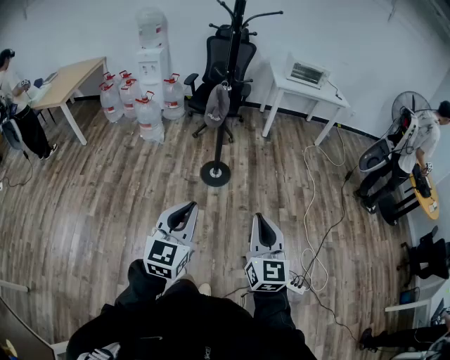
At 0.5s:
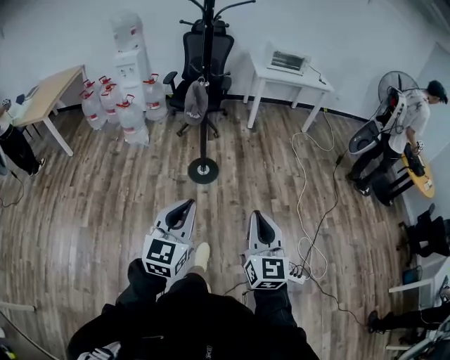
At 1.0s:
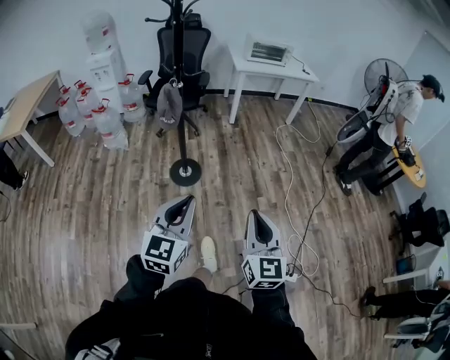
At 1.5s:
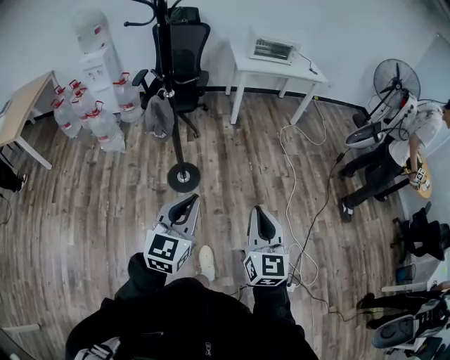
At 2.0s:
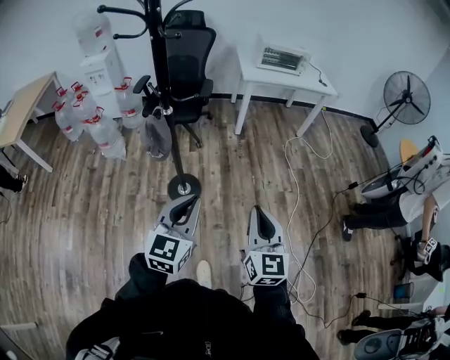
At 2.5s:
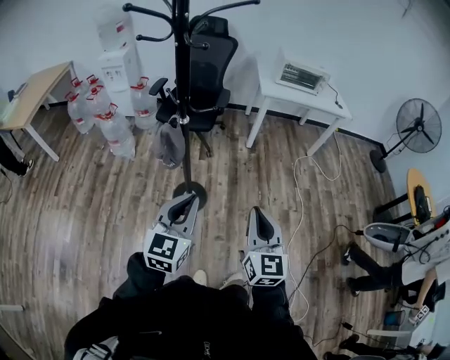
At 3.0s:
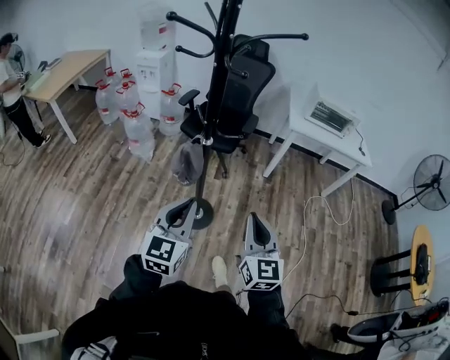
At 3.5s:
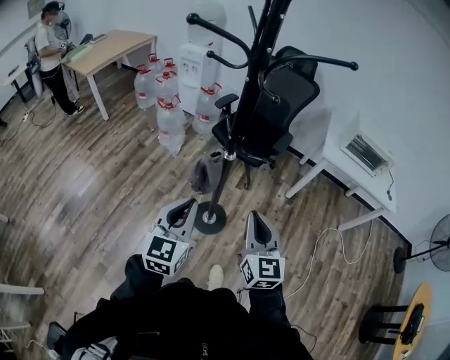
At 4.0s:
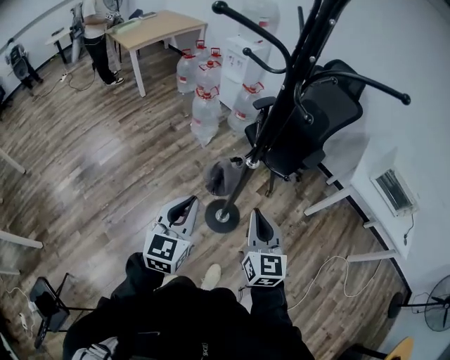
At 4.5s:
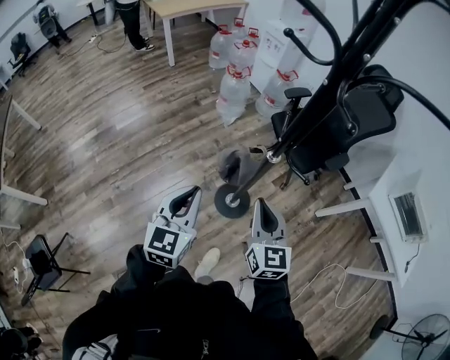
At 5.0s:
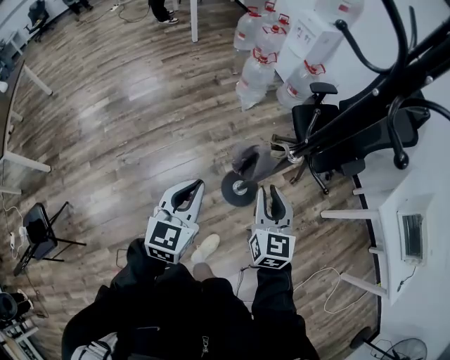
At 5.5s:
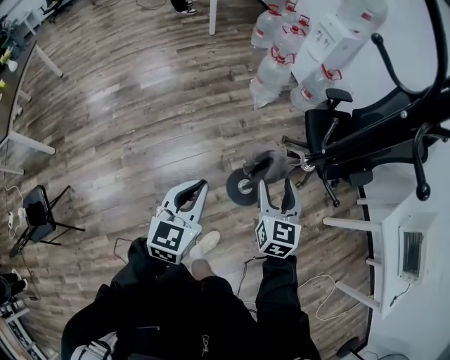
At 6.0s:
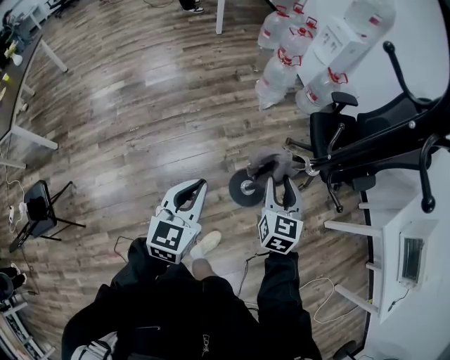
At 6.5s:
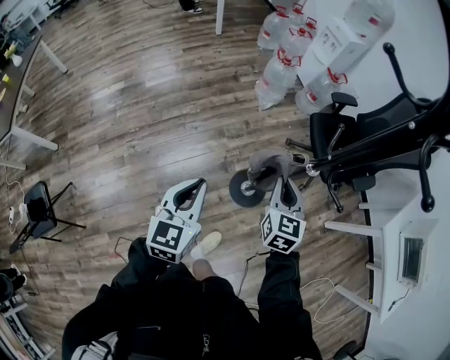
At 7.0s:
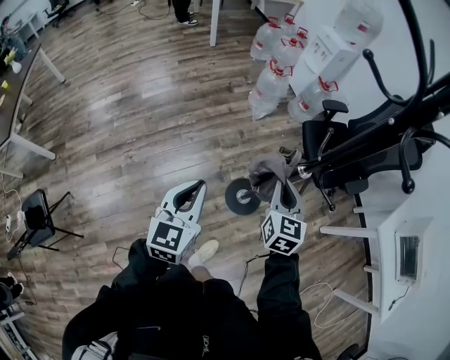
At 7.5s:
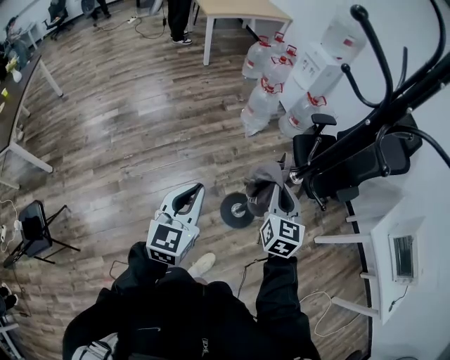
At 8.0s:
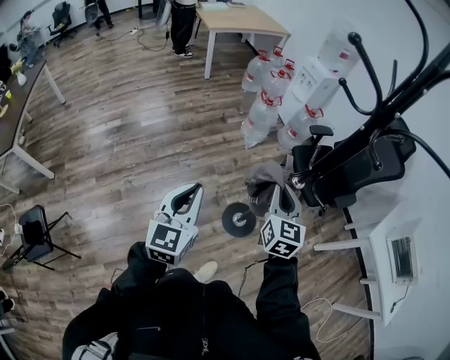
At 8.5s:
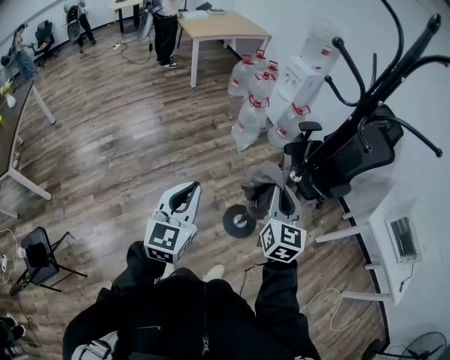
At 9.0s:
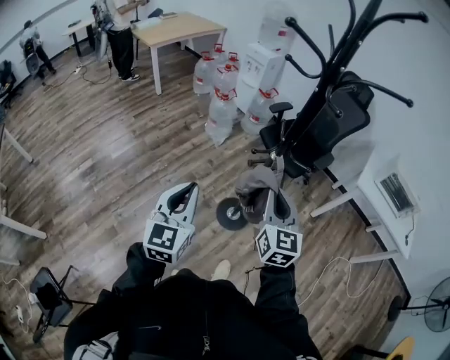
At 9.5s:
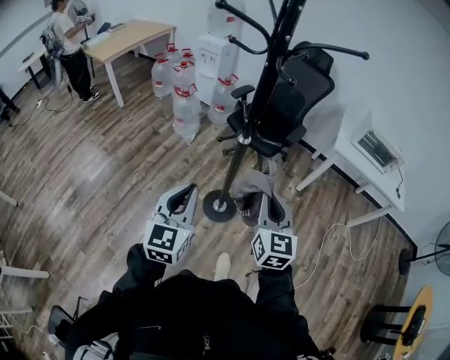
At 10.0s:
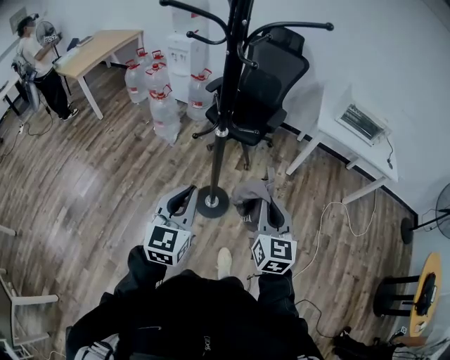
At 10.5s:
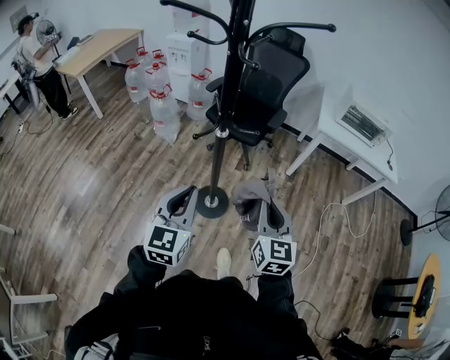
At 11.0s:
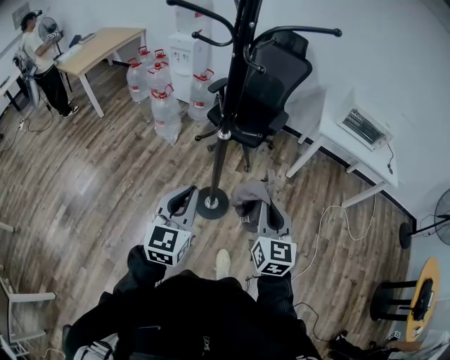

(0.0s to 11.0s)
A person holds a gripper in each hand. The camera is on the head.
0.0s - 2.0s: Both grippers are carried forward, about 50 cm.
2.0s - 3.5s: The left gripper shifts by approximately 25 cm, and swivels approximately 30 degrees, while the right gripper moves roughly 30 cm, and turns by approximately 30 degrees.
3.5s - 5.5s: The right gripper shifts by approximately 30 cm, turns by about 30 degrees, and opens its fingers; the left gripper heads downward, covering about 15 cm, and changes its angle by some 40 degrees.
5.5s - 7.5s: The two grippers go some 10 cm upward. The right gripper closes up.
7.5s - 9.0s: The right gripper moves backward and upward, about 20 cm. The left gripper moves upward and backward, approximately 10 cm.
9.0s - 11.0s: The right gripper travels to the right and backward by about 15 cm, and turns by about 20 degrees; the left gripper travels to the right by approximately 10 cm, and swivels about 20 degrees.

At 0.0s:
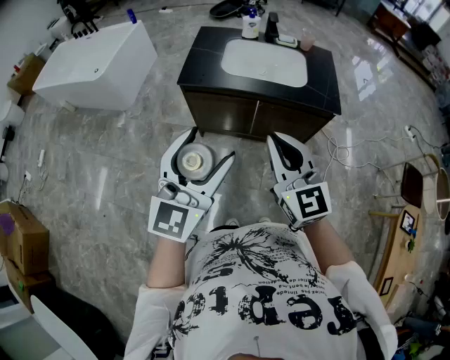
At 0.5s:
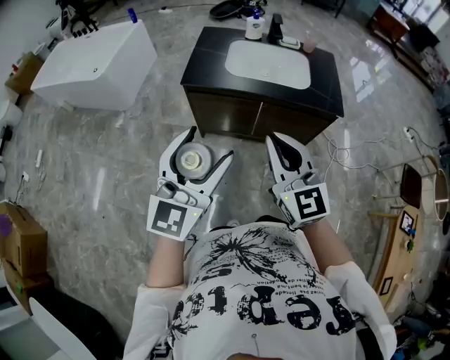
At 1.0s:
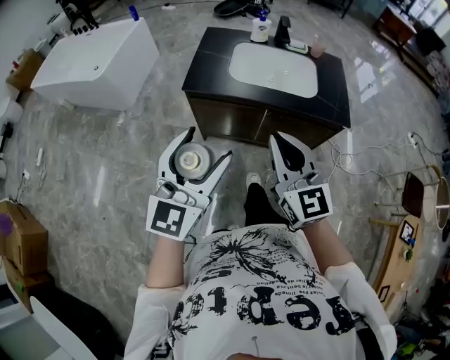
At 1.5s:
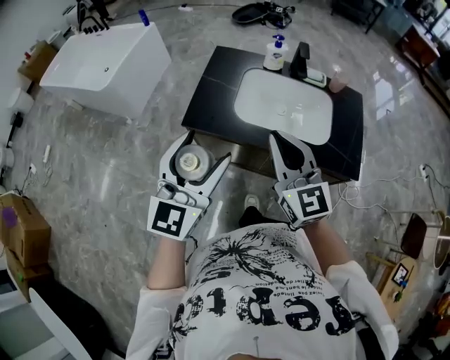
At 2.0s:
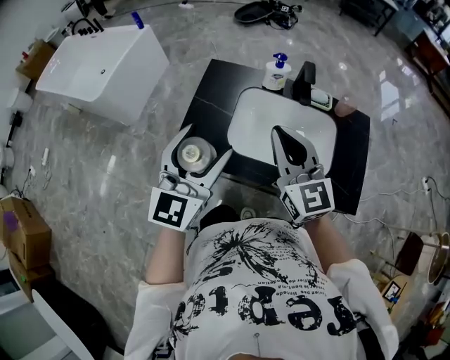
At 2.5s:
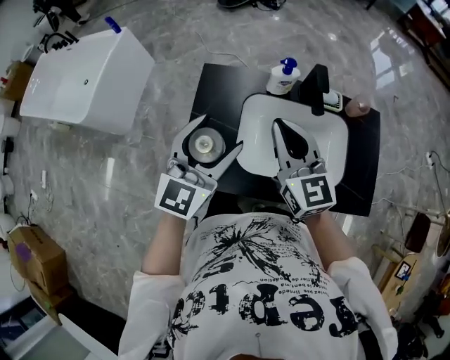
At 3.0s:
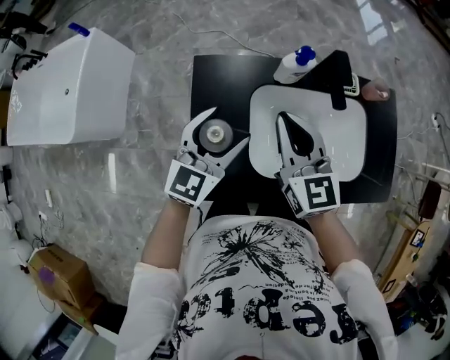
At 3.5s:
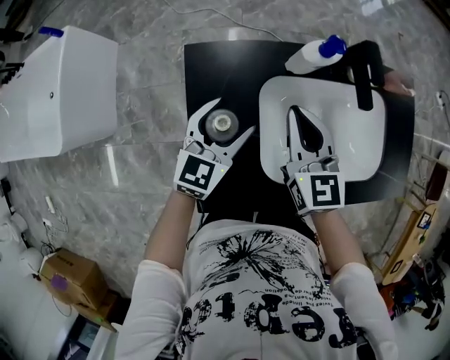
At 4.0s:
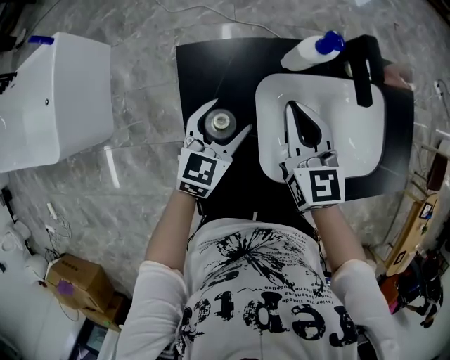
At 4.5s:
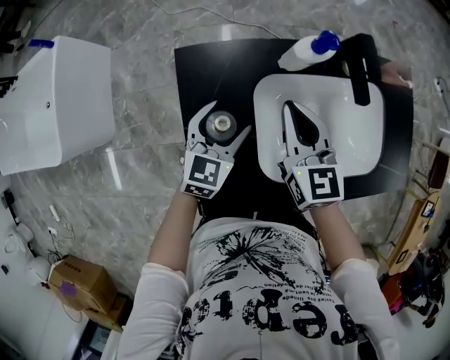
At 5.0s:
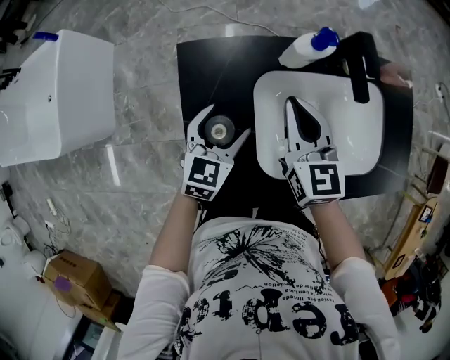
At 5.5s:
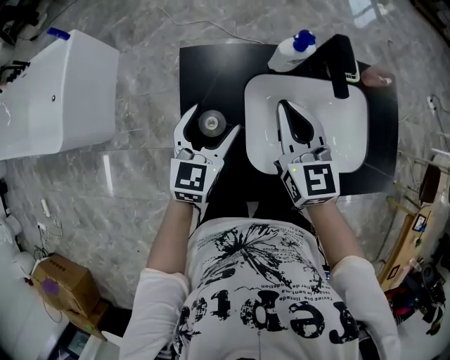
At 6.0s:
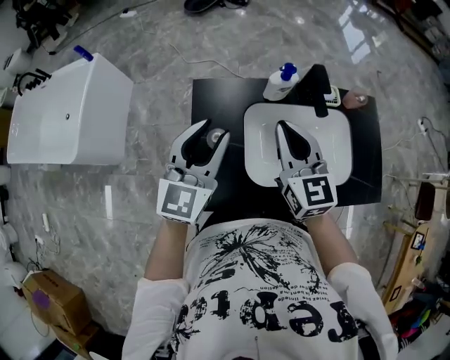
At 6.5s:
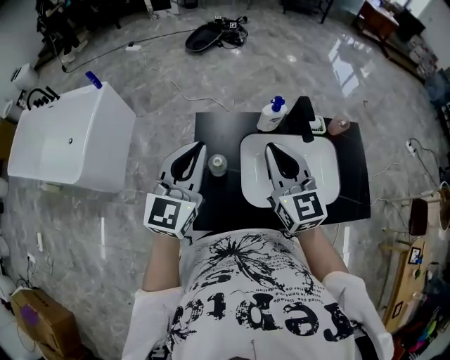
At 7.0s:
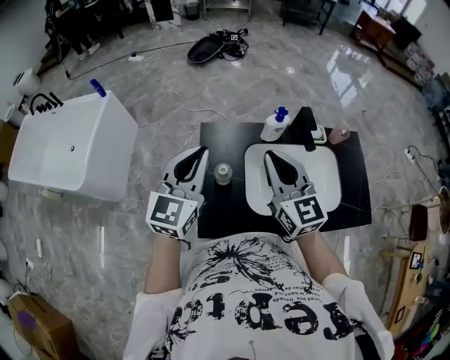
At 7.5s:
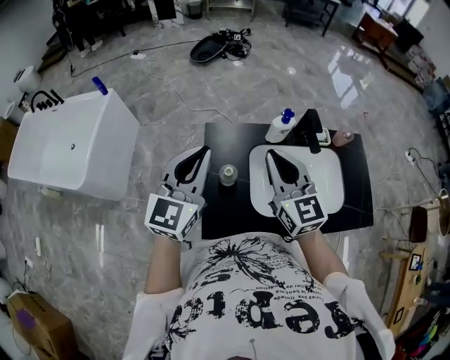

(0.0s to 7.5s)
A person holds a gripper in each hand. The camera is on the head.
0.0s - 2.0s: The pair of grippers is taken forward, some 50 cm.
2.0s - 4.0s: The right gripper moves about 35 cm, and turns by some 30 degrees, while the left gripper shifts roughly 35 cm downward, and rotates about 40 degrees.
4.0s - 5.5s: The grippers both shift upward by about 5 cm.
5.5s - 7.5s: The right gripper shifts some 20 cm upward, backward and to the left. Meanwhile the left gripper shifts roughly 25 cm upward, swivels approximately 20 degrees, and closes its fingers.

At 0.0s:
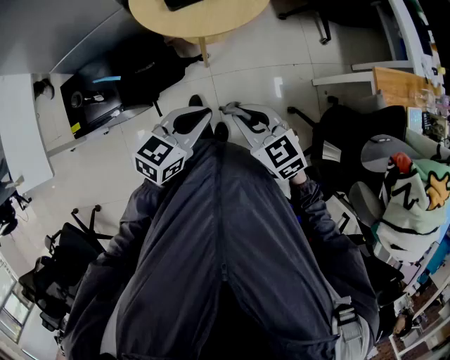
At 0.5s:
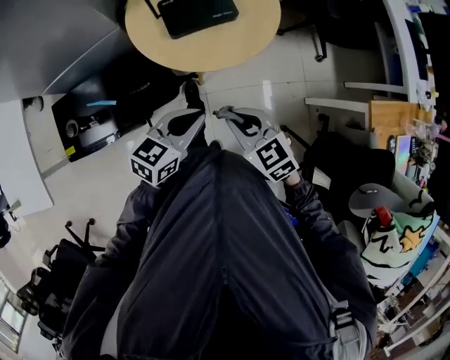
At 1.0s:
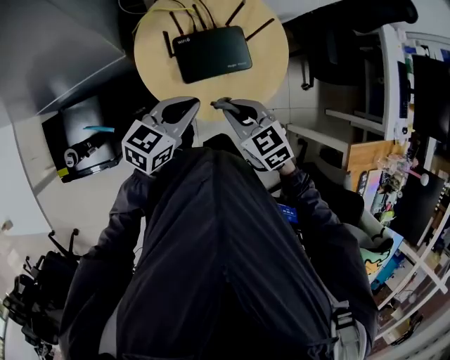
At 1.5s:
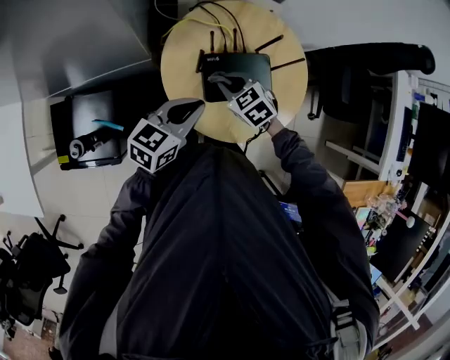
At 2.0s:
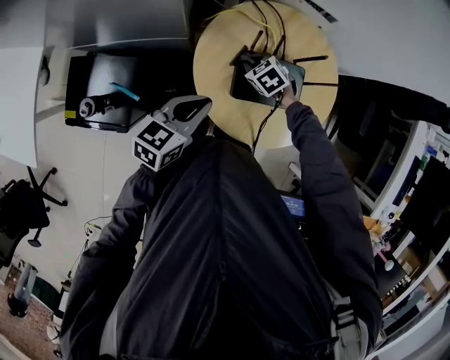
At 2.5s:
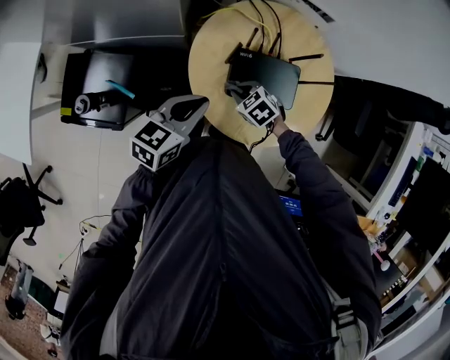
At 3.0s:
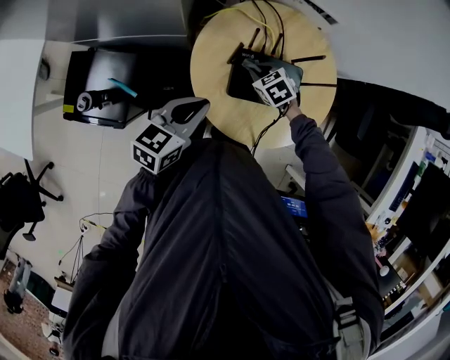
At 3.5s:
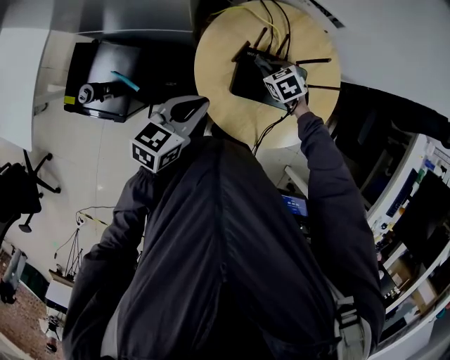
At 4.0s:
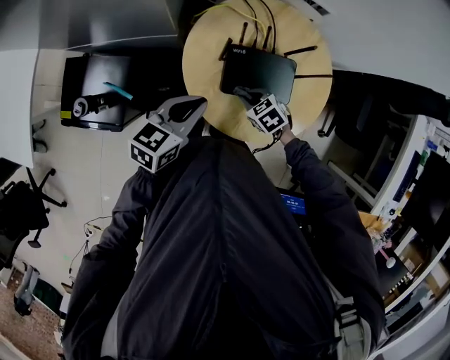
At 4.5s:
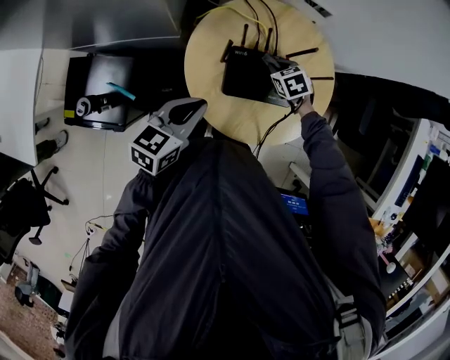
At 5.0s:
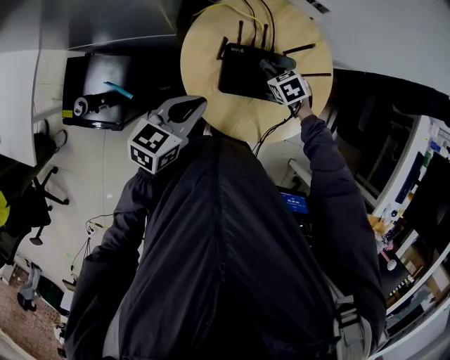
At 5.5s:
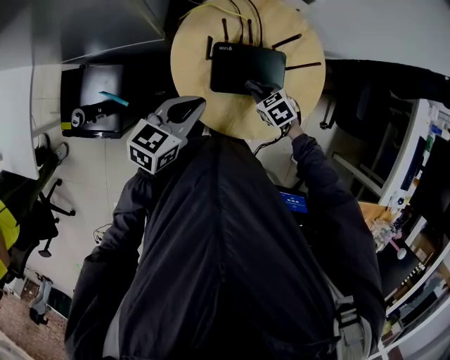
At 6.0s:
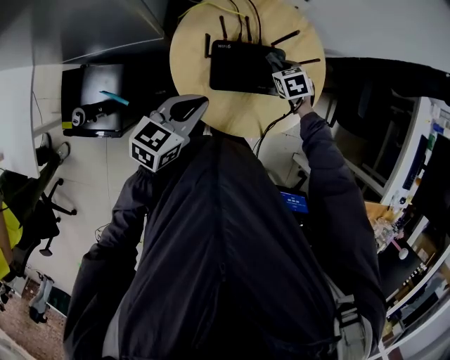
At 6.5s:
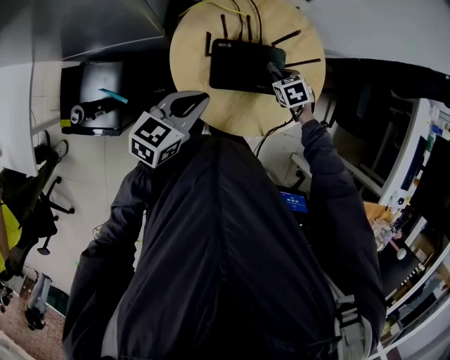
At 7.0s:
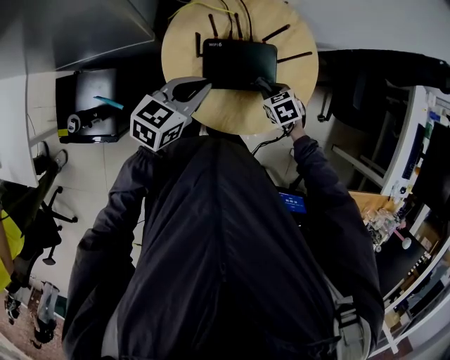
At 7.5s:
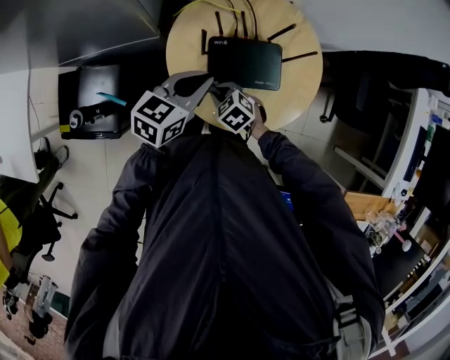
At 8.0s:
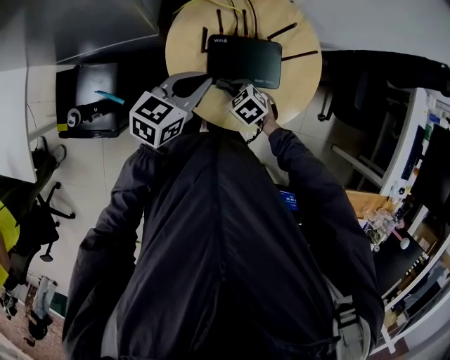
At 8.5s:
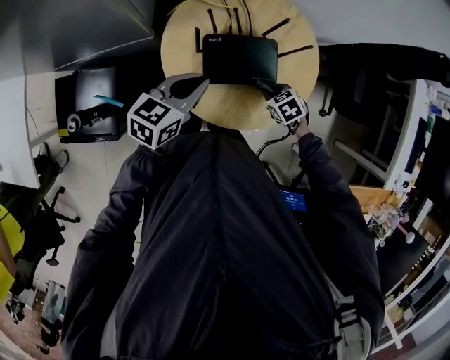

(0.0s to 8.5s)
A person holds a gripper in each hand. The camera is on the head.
0.0s - 2.0s: The two grippers travel together, forward, roughly 50 cm. The right gripper points its fingers about 30 degrees further downward, while the left gripper rotates some 30 degrees.
2.0s - 4.0s: The right gripper swings forward and backward, about 15 cm each way, with 2 reversals.
4.0s - 6.5s: The right gripper moves some 15 cm, and rotates about 20 degrees.
6.5s - 8.5s: The right gripper goes some 10 cm backward, and travels to the left and back again, some 20 cm each way.
